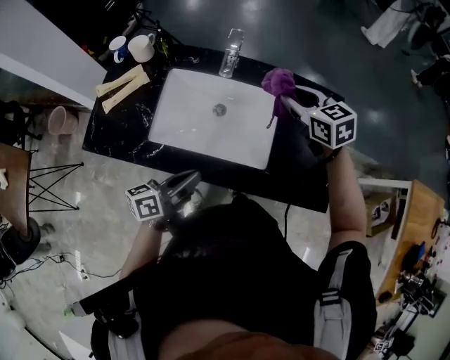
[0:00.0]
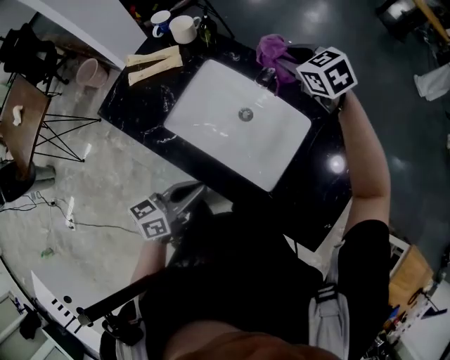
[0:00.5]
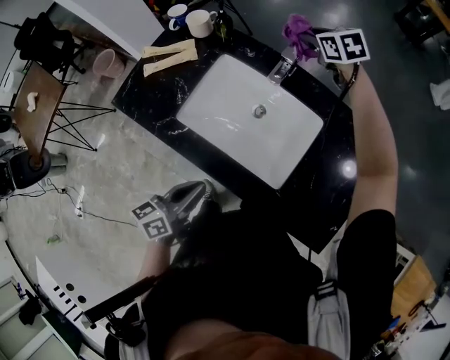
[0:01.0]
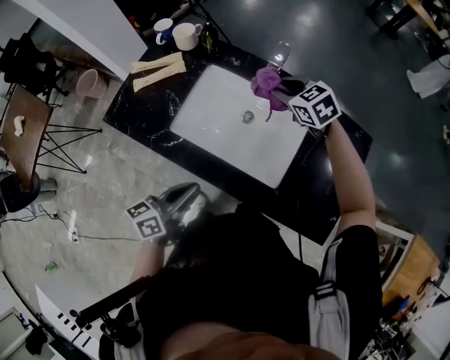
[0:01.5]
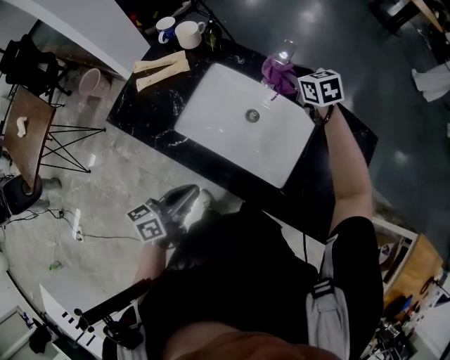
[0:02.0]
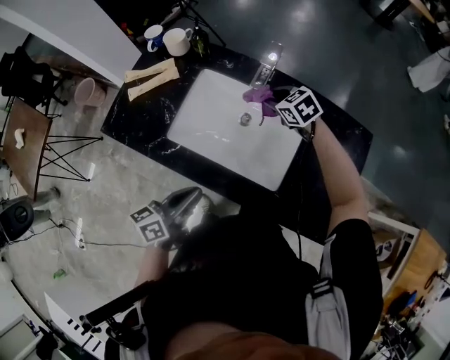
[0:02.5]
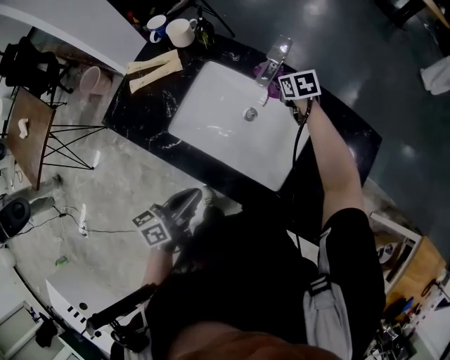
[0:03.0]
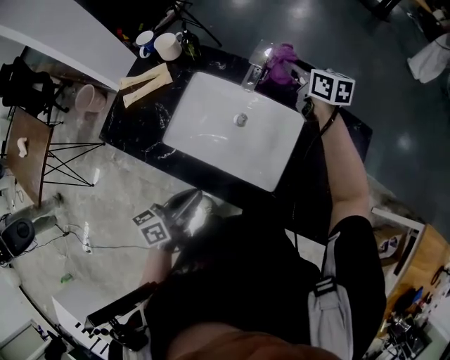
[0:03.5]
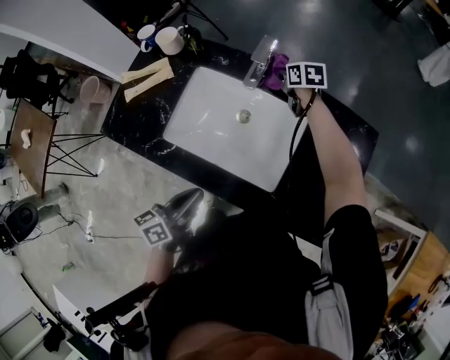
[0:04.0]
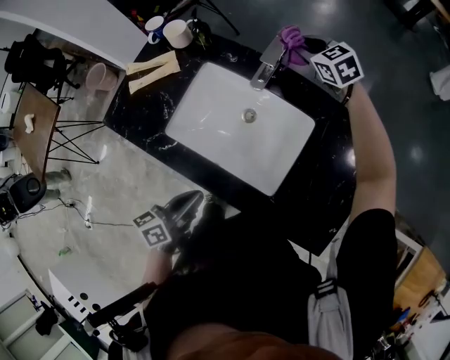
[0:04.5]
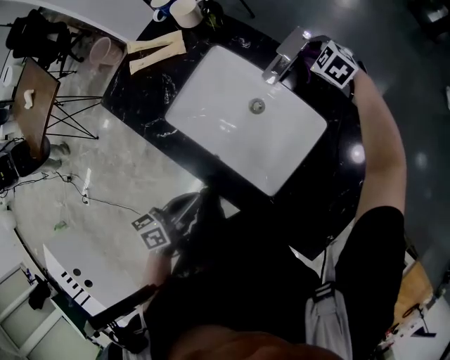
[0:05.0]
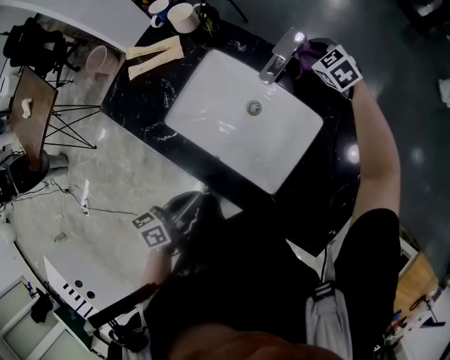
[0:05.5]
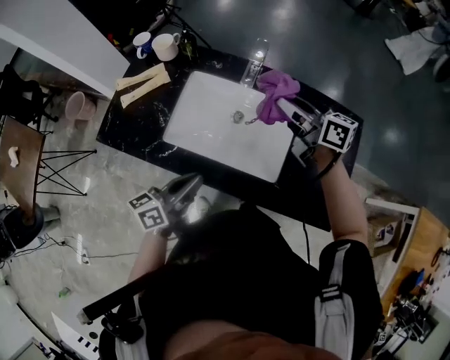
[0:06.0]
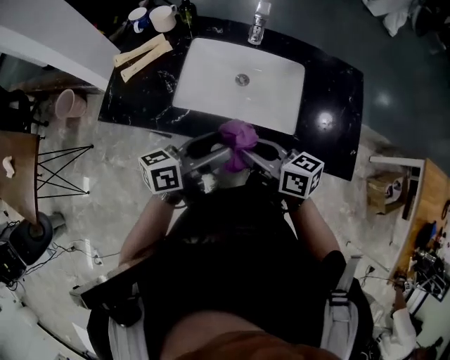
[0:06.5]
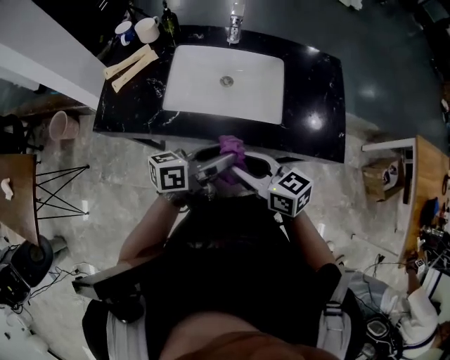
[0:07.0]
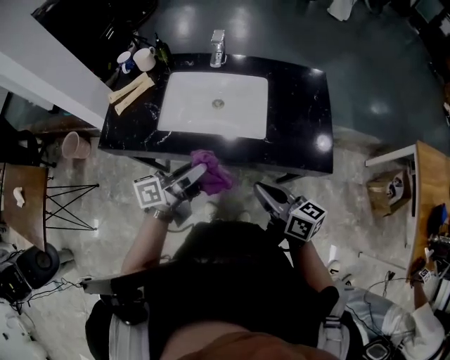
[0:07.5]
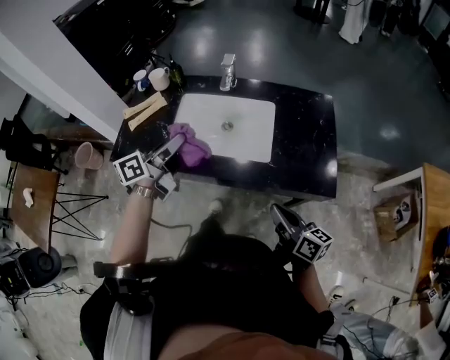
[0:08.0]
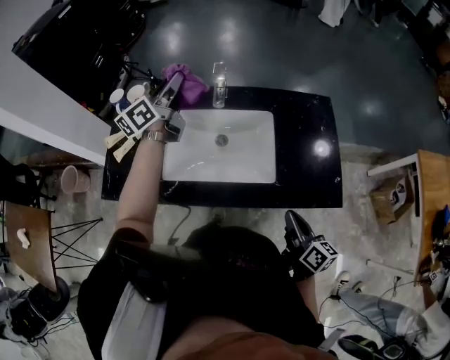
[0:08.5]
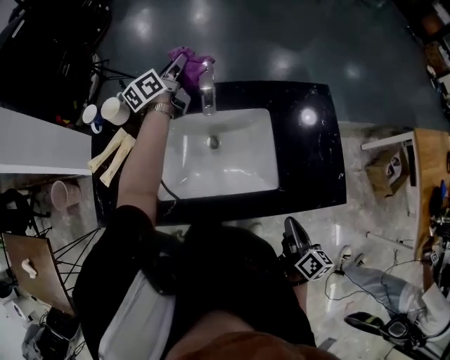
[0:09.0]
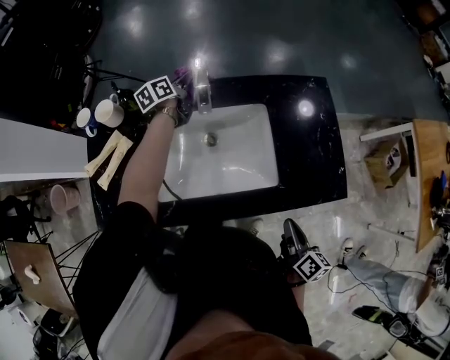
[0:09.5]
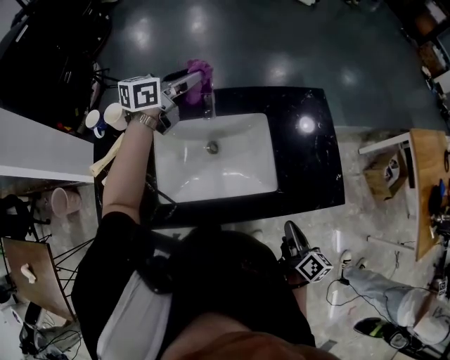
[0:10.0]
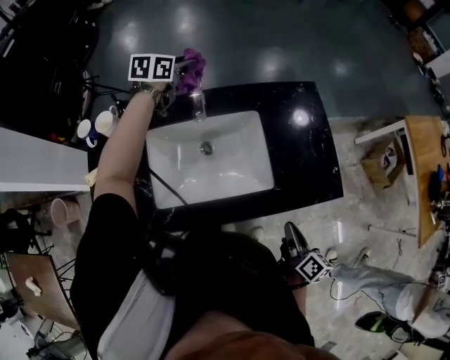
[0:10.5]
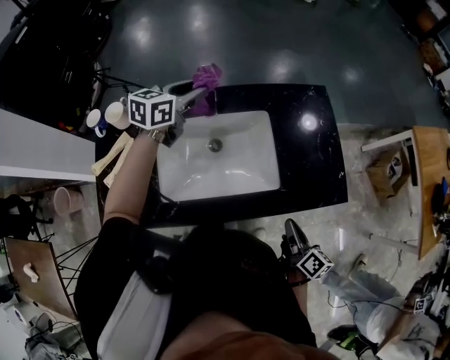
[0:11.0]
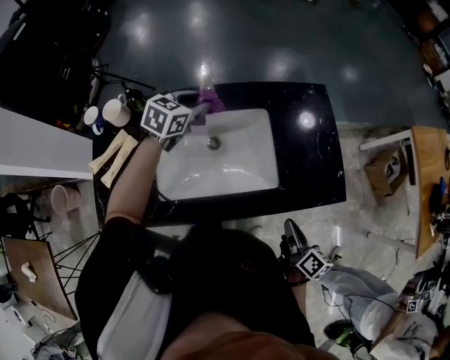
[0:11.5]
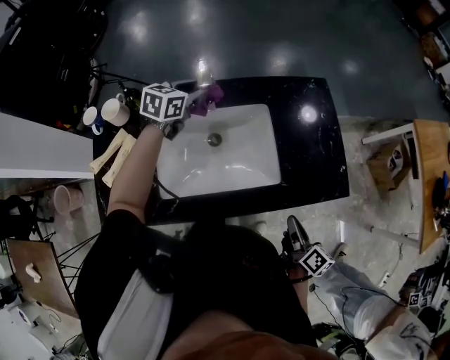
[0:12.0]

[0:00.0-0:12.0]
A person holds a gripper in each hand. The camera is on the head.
0:00.0 to 0:02.0: The left gripper shifts by roughly 5 cm, while the right gripper swings forward and backward, approximately 25 cm each way, with 2 reversals.
0:02.0 to 0:04.0: The right gripper goes up and down, roughly 15 cm each way, reversing 2 times, and turns by approximately 20 degrees, while the left gripper moves some 5 cm.
0:04.0 to 0:06.0: The right gripper is displaced upward and backward by about 25 cm, and tips its fingers upward by about 40 degrees.
0:06.0 to 0:08.0: The left gripper heads upward, covering about 10 cm, reaches approximately 10 cm backward, then returns, and opens. The right gripper shifts about 40 cm backward, swivels roughly 30 degrees, and closes.
0:08.0 to 0:10.0: The left gripper moves up and down over approximately 25 cm, changing direction 2 times, and turns by about 30 degrees; the right gripper moves about 10 cm, and rotates about 40 degrees.
0:10.0 to 0:12.0: The left gripper is displaced downward by roughly 10 cm, goes forward and returns, approximately 10 cm each way, and changes its angle by approximately 30 degrees.

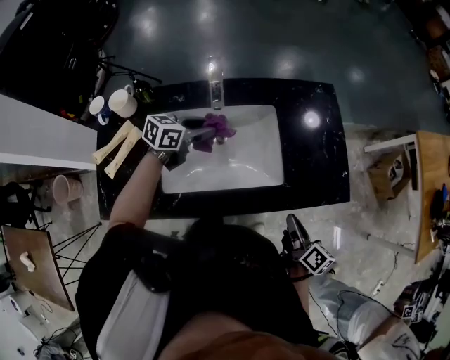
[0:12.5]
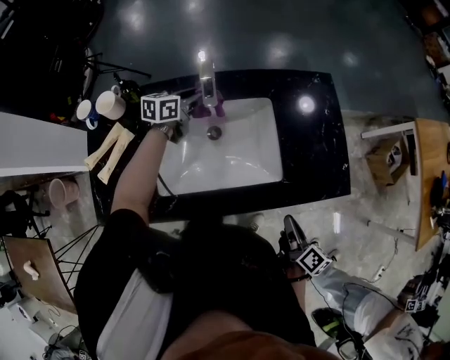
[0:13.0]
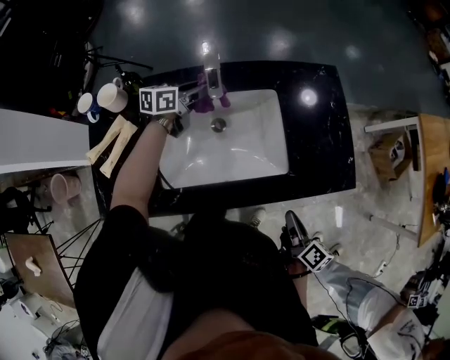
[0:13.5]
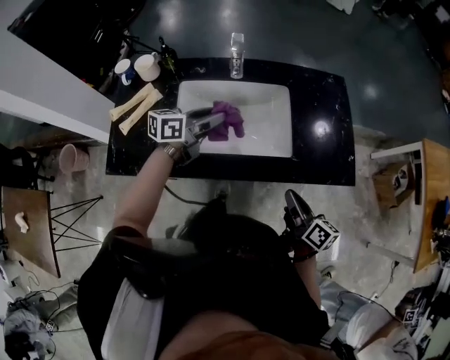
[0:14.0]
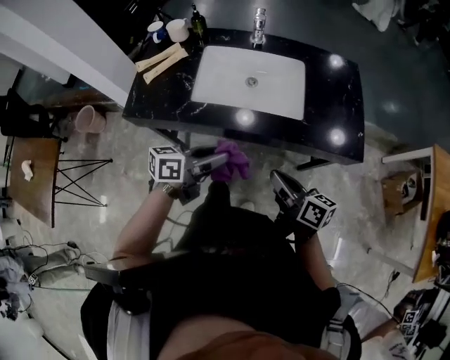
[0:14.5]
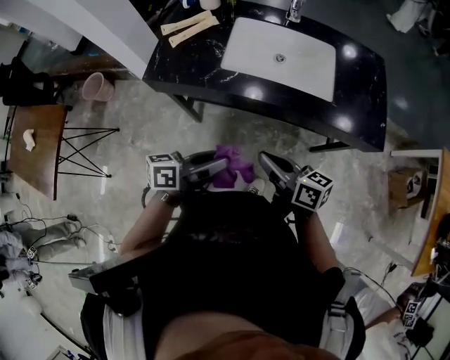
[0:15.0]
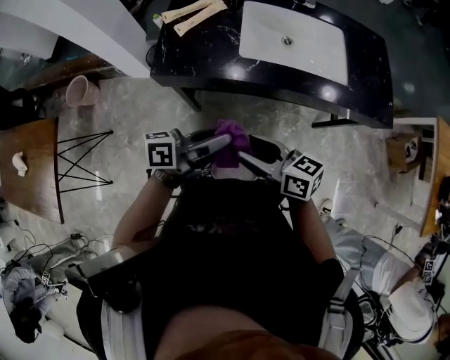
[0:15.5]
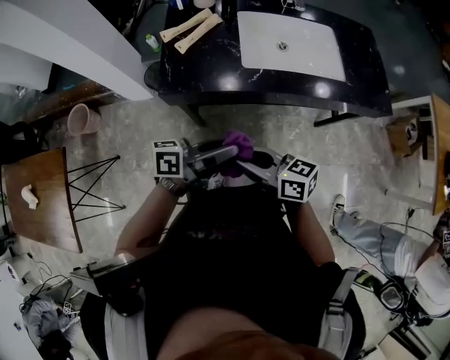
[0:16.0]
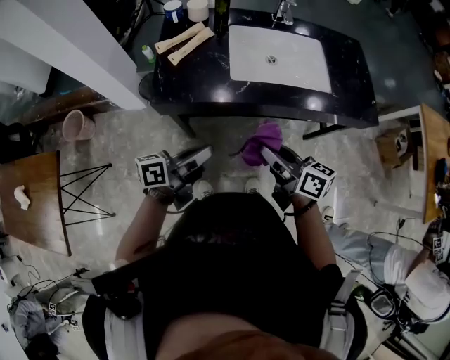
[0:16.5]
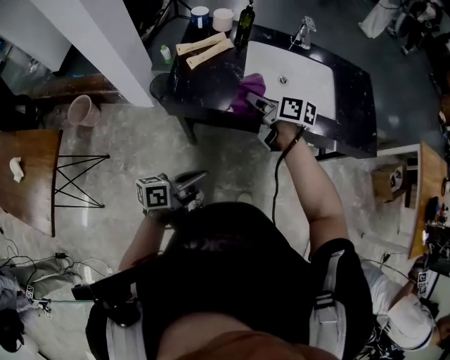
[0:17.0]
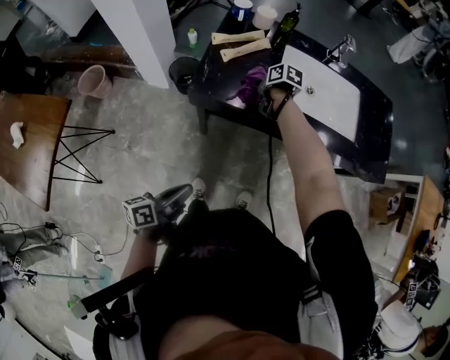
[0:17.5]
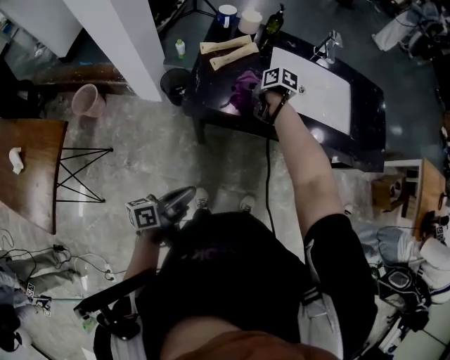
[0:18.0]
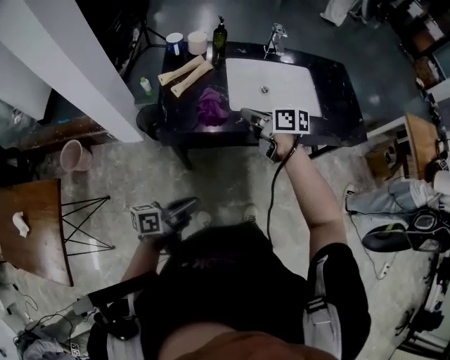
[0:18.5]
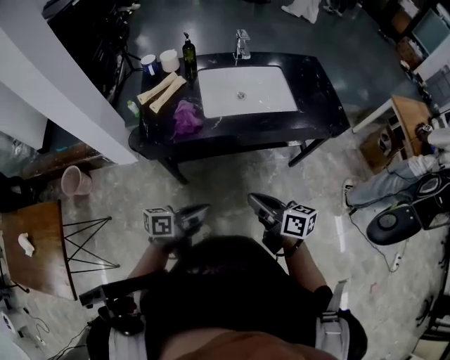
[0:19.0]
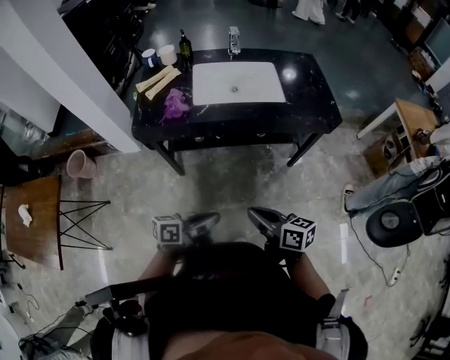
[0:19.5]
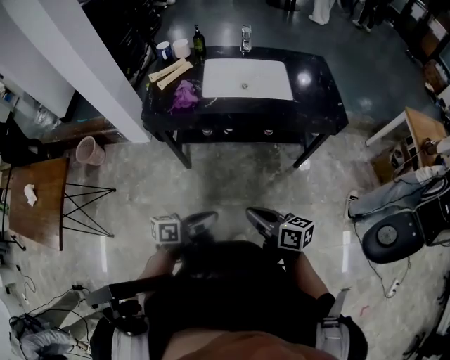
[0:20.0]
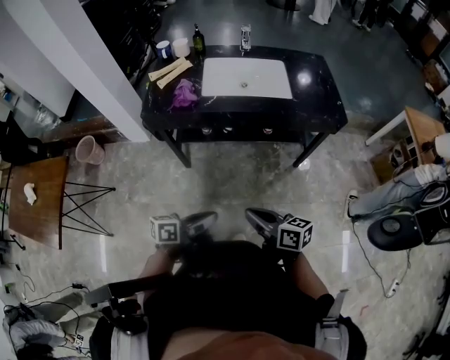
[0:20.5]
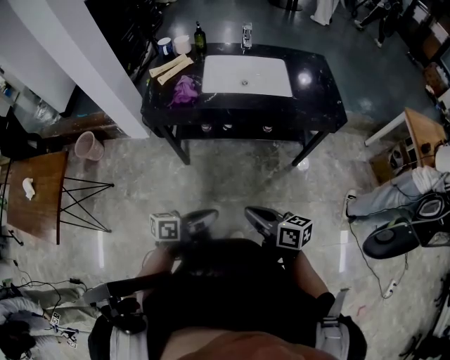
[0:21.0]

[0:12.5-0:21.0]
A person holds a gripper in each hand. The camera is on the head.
0:12.5 to 0:14.5: The left gripper moves backward, approximately 35 cm, and swivels about 30 degrees; the right gripper travels backward by roughly 15 cm, and rotates approximately 40 degrees.
0:14.5 to 0:16.5: The left gripper changes place by some 25 cm, and closes up. The right gripper ends up some 25 cm from where it was, and opens, then closes again.
0:16.5 to 0:19.0: The right gripper goes downward and returns, approximately 15 cm each way, and opens and closes again.
0:19.0 to 0:21.0: Both grippers move backward and to the right, roughly 20 cm.

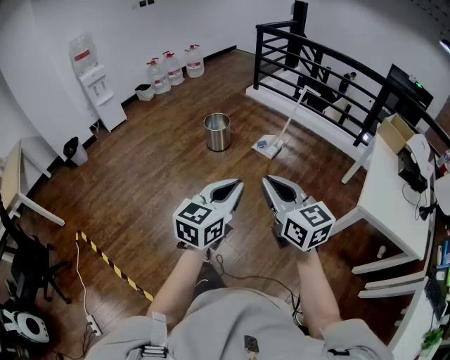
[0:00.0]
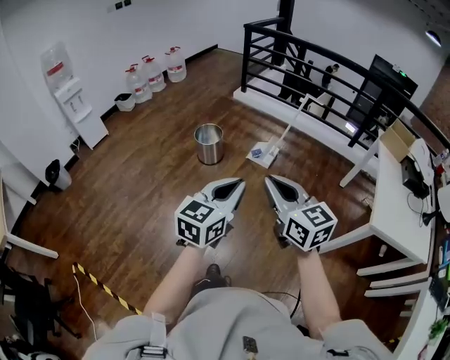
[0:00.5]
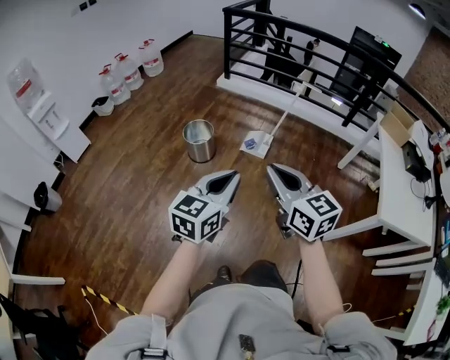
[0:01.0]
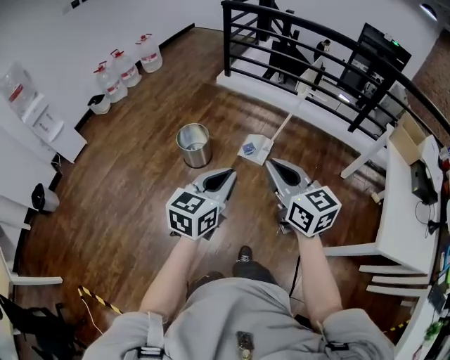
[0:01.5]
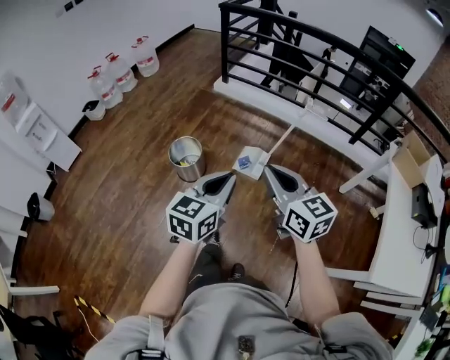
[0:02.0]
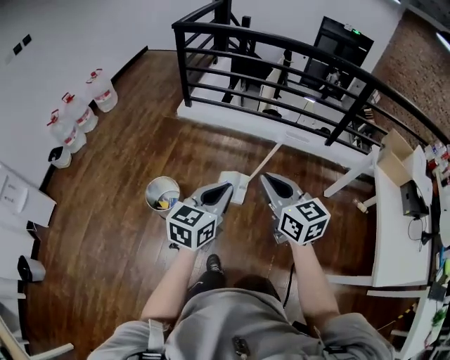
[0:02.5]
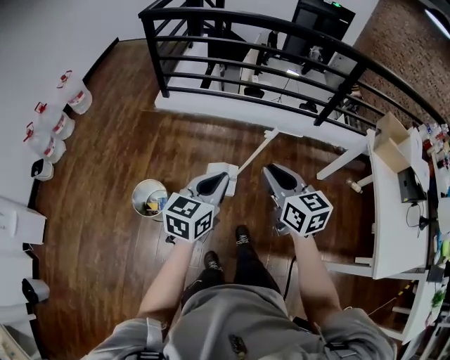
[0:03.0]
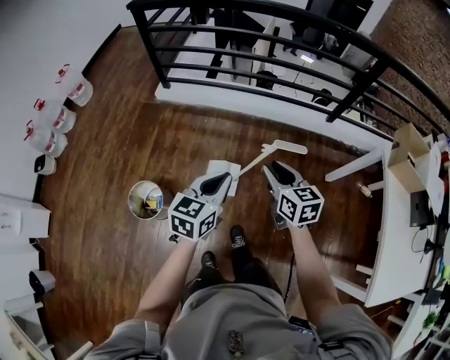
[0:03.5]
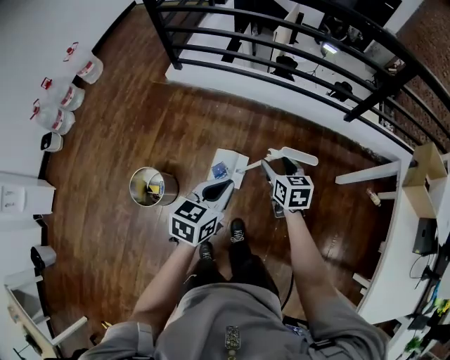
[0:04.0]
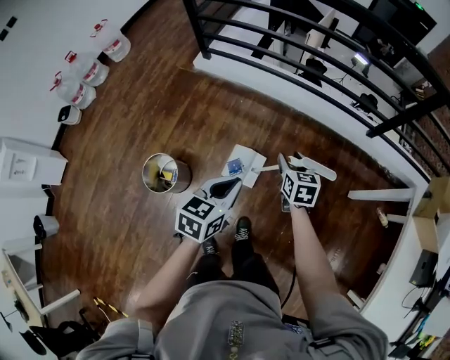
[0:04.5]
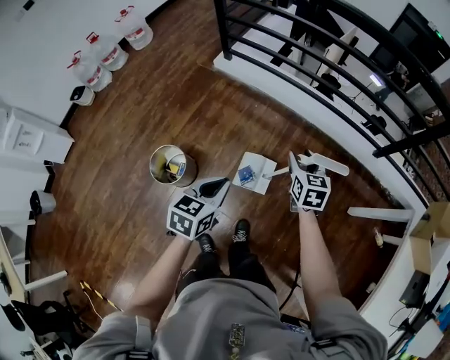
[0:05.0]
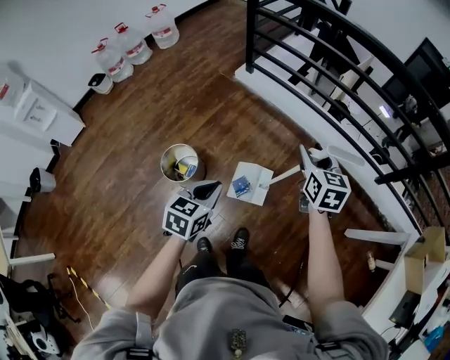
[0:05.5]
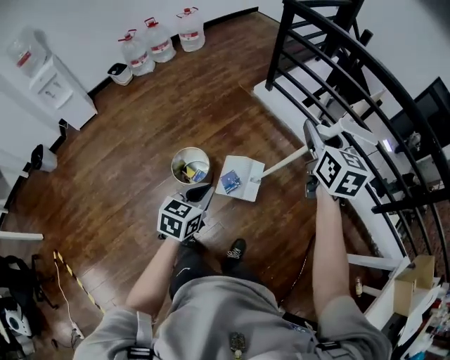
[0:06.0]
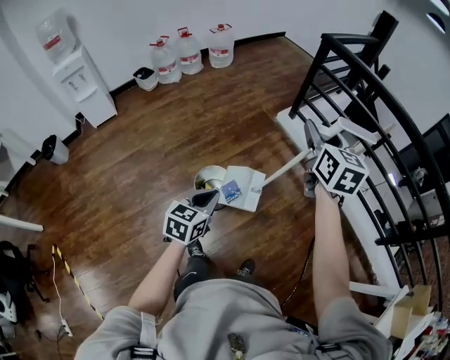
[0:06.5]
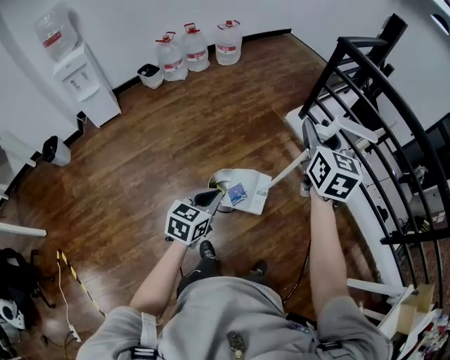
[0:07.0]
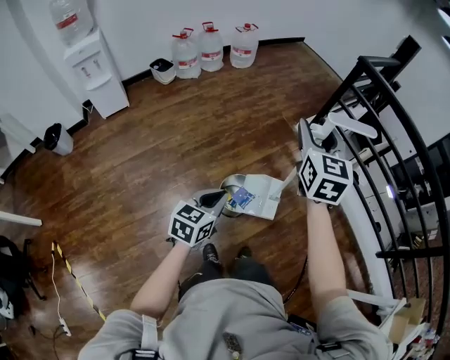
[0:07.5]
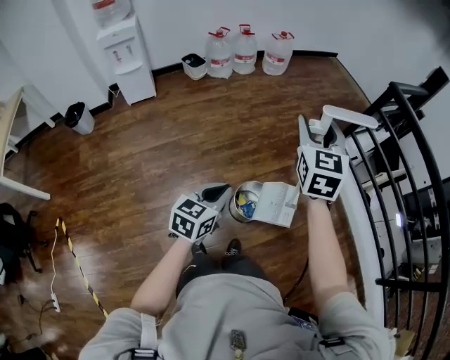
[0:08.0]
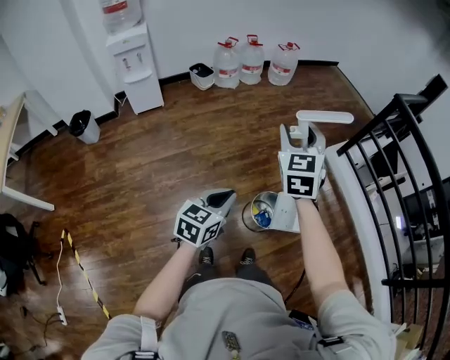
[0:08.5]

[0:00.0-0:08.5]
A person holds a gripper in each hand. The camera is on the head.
0:00.0 to 0:02.0: Both grippers are carried forward, roughly 60 cm.
0:02.0 to 0:04.0: The pair of grippers is taken forward, approximately 50 cm. The left gripper rotates some 20 degrees, while the right gripper travels downward by approximately 30 cm, turns by approximately 40 degrees, and opens.
0:04.0 to 0:06.5: The right gripper ends up about 50 cm from where it was, and turns by roughly 40 degrees. The left gripper moves roughly 40 cm, and changes its angle by roughly 40 degrees.
0:06.5 to 0:08.5: The grippers both shift to the left by about 40 cm. The right gripper turns by about 30 degrees.
